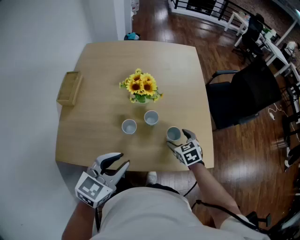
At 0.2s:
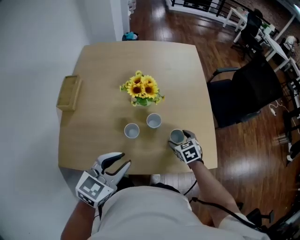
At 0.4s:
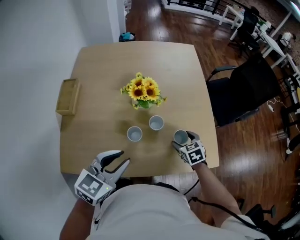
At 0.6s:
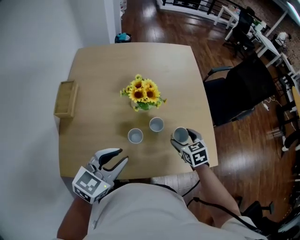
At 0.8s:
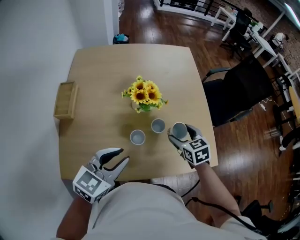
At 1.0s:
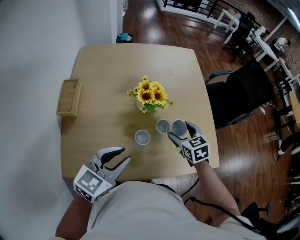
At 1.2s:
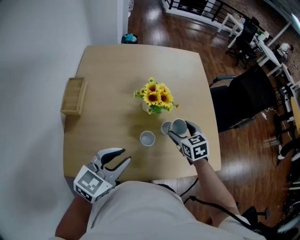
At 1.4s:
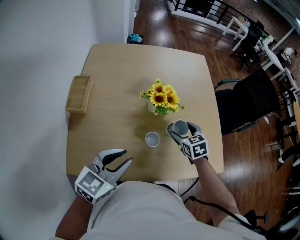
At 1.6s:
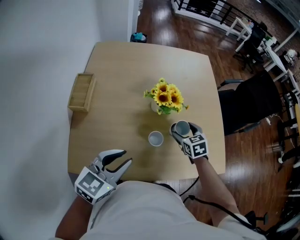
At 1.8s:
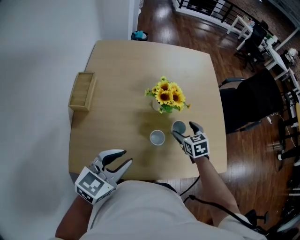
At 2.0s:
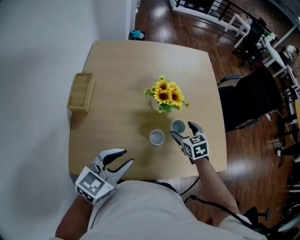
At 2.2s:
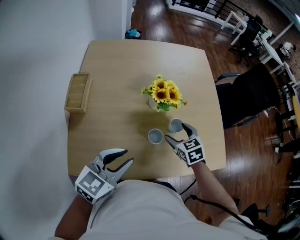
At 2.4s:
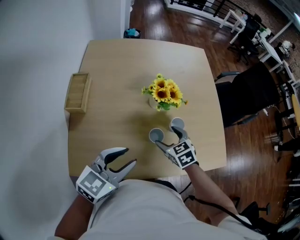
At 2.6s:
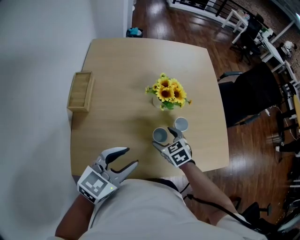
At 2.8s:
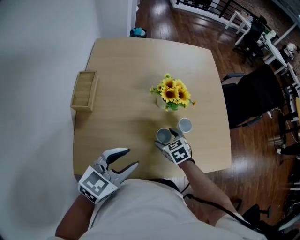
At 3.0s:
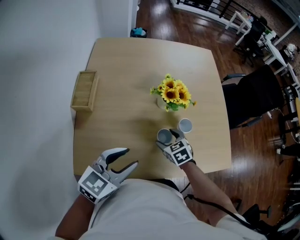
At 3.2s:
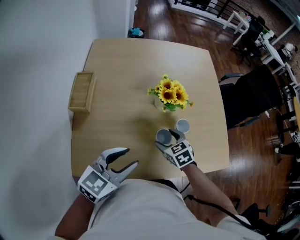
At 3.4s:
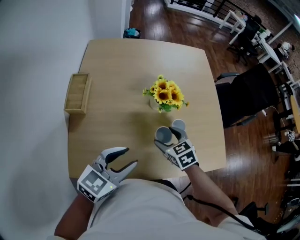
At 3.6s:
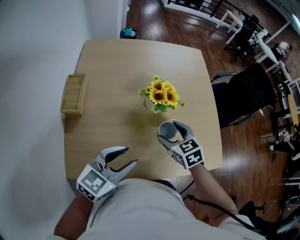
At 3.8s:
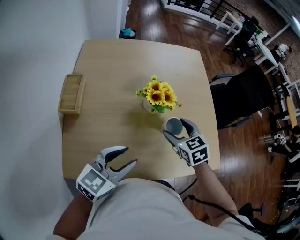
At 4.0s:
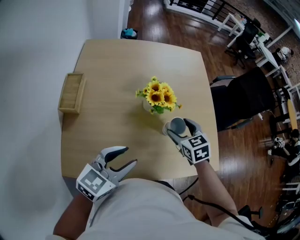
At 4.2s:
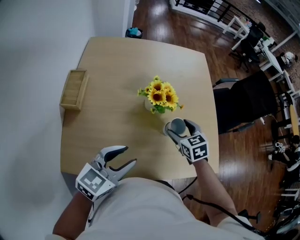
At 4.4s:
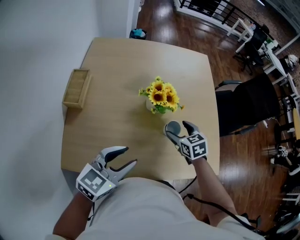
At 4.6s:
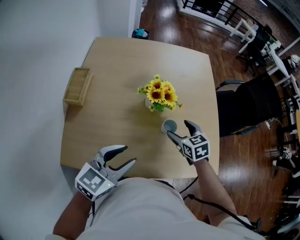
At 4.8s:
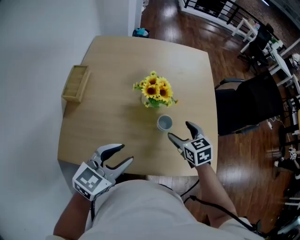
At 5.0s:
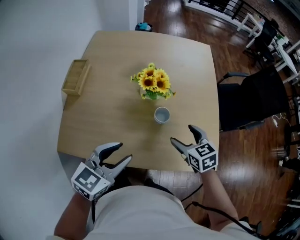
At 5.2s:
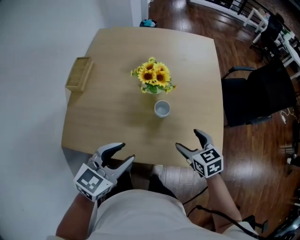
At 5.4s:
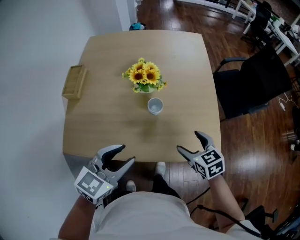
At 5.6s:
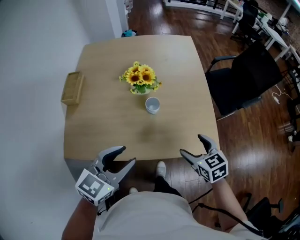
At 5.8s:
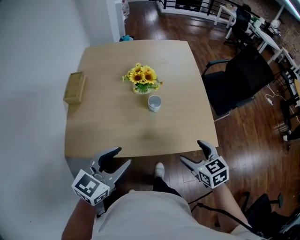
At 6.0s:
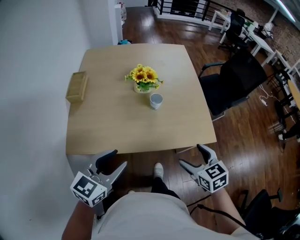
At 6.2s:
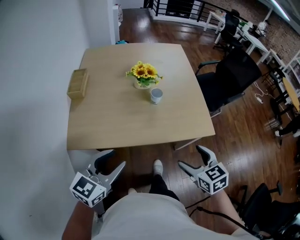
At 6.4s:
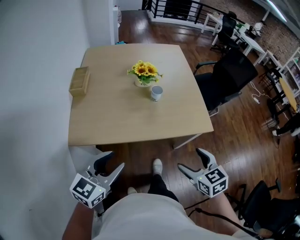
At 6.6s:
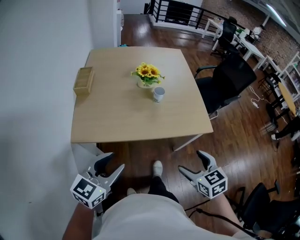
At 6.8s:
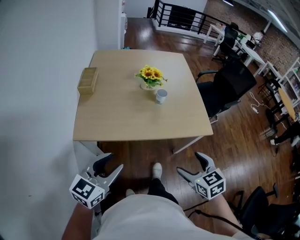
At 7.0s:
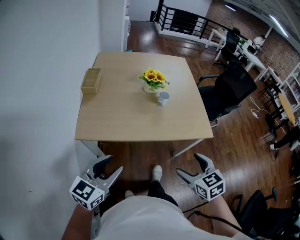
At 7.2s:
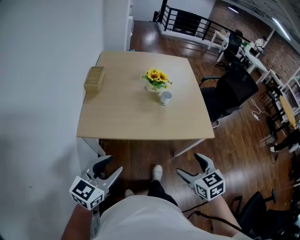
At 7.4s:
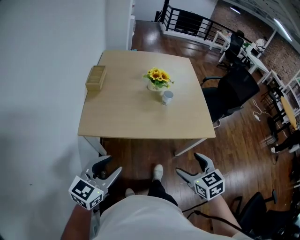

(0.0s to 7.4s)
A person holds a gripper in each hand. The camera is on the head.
0.0s - 1.4s: The left gripper goes approximately 15 cm to the left. The right gripper travels to the left, forward and upward by about 15 cm.
1.4s - 3.0s: The right gripper travels to the left, downward and backward by roughly 15 cm.
3.0s - 4.4s: The right gripper moves to the right, upward and forward, some 15 cm. Meanwhile the left gripper shifts about 5 cm to the right.
4.4s - 6.0s: The right gripper travels backward by about 35 cm, while the left gripper heads backward, covering approximately 20 cm.
6.0s - 7.4s: The two grippers go roughly 20 cm backward and to the left.

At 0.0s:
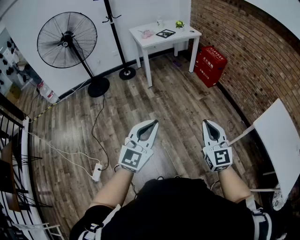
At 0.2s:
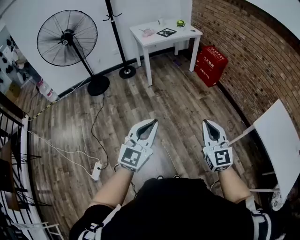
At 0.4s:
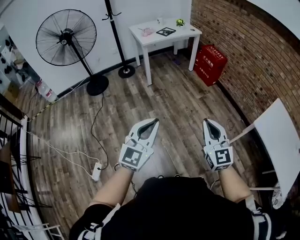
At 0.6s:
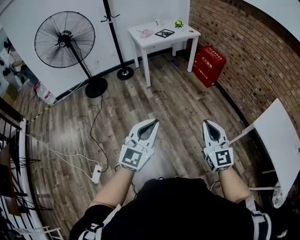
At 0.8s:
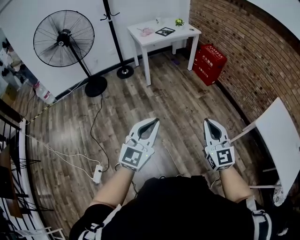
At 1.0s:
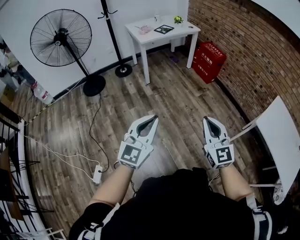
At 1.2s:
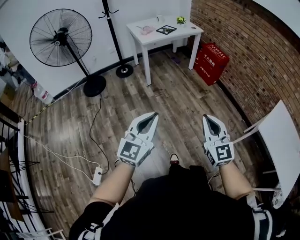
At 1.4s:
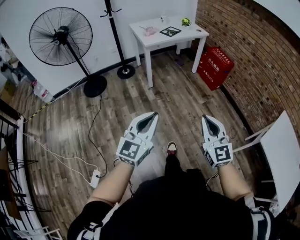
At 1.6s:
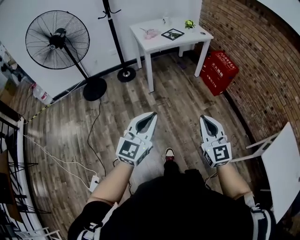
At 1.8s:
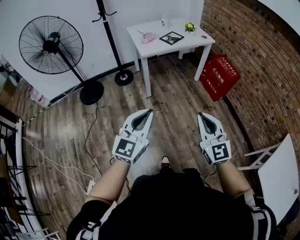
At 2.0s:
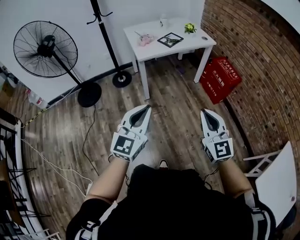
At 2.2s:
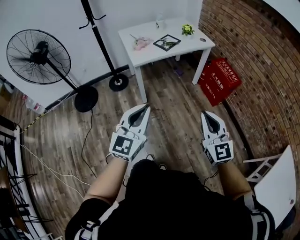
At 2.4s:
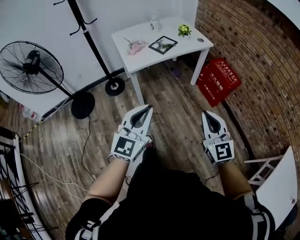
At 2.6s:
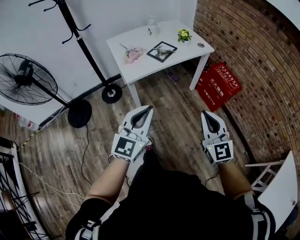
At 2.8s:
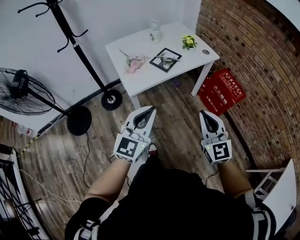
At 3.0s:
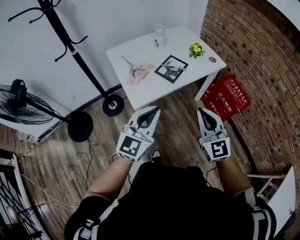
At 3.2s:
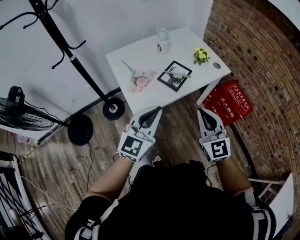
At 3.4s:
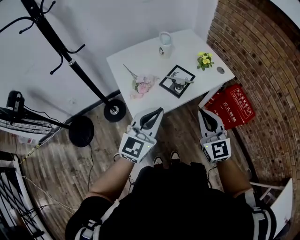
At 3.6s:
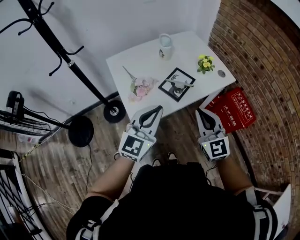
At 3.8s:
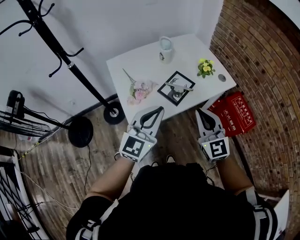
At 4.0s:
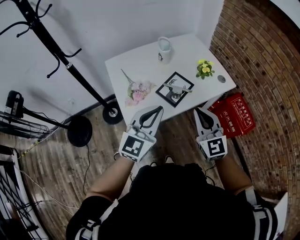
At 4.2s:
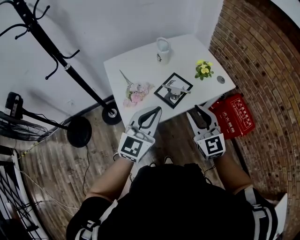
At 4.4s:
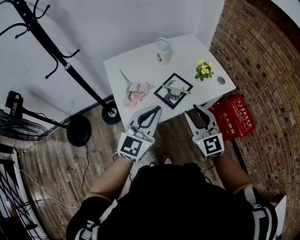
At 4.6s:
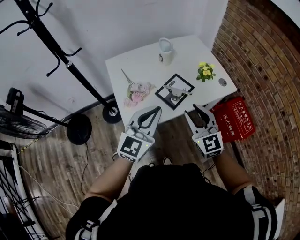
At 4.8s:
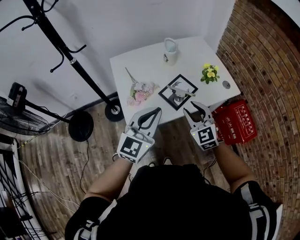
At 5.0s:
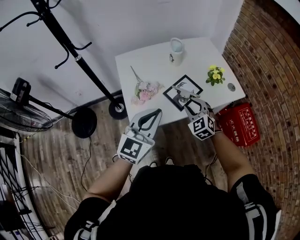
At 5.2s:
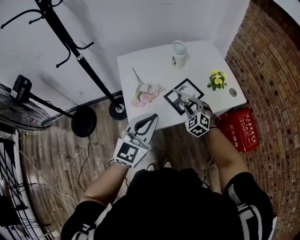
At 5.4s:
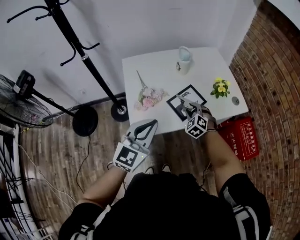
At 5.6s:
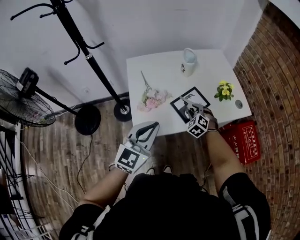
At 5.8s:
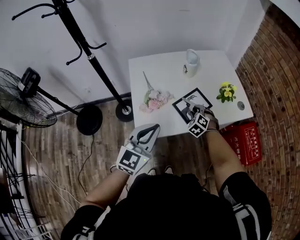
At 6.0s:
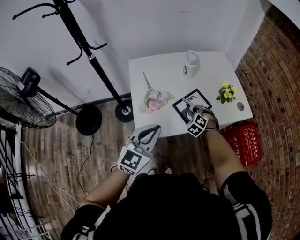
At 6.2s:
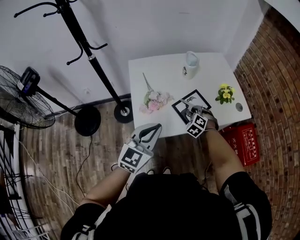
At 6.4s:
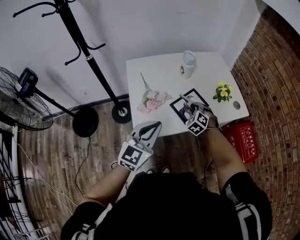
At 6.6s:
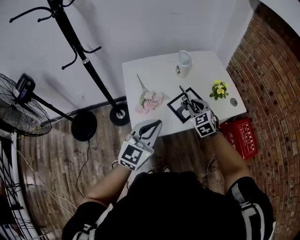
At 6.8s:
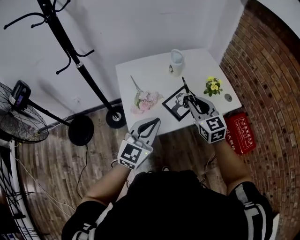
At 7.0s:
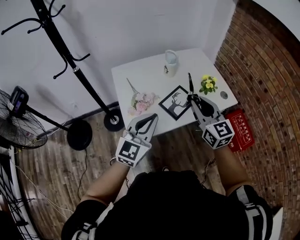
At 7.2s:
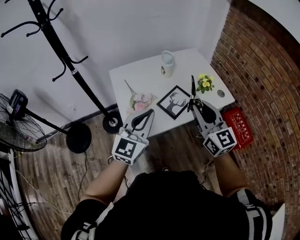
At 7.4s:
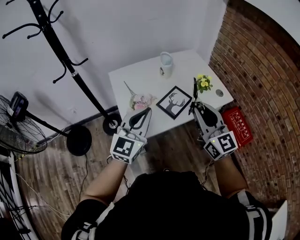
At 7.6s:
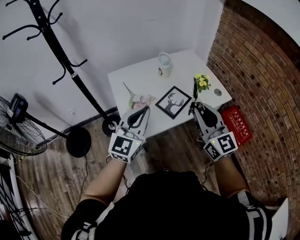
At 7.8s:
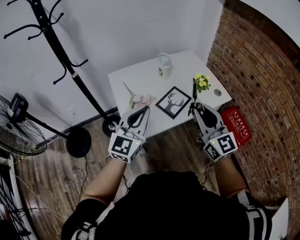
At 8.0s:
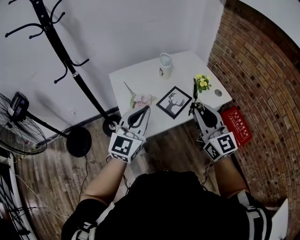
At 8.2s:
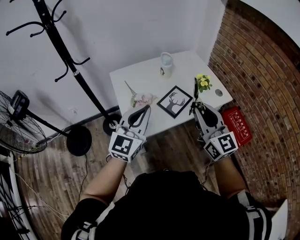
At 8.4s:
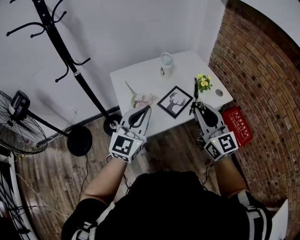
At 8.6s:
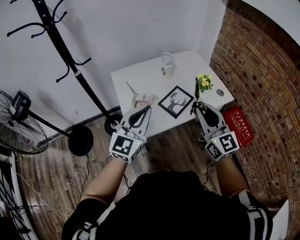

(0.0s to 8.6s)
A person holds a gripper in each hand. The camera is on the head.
0.0s - 1.4s: The two grippers go about 20 cm forward and to the left.
1.4s - 2.8s: The pair of grippers is taken forward, roughly 60 cm.
2.8s - 4.4s: Both grippers travel together forward, some 30 cm. The right gripper opens up.
4.4s - 5.8s: The right gripper heads downward and forward, covering roughly 30 cm, and angles its fingers downward, by about 40 degrees; the left gripper travels to the left by some 5 cm.
5.8s - 7.2s: The left gripper moves upward, approximately 5 cm. Meanwhile the right gripper travels upward and backward by roughly 35 cm, and points its fingers about 50 degrees further upward.
7.2s - 8.6s: There are only small adjustments of the grippers.

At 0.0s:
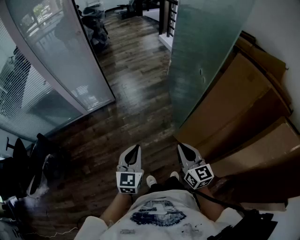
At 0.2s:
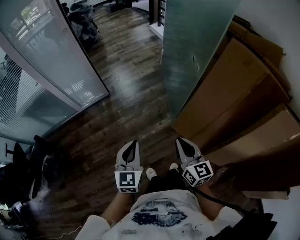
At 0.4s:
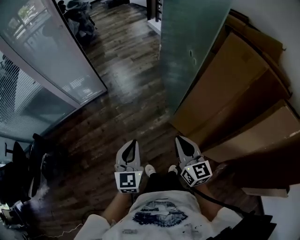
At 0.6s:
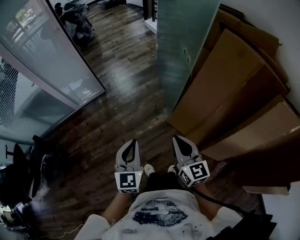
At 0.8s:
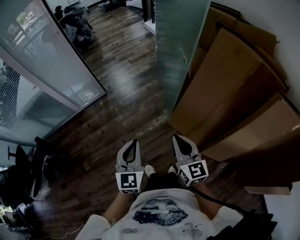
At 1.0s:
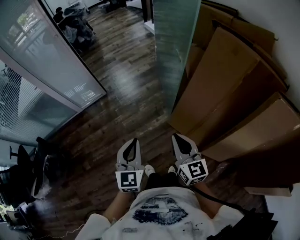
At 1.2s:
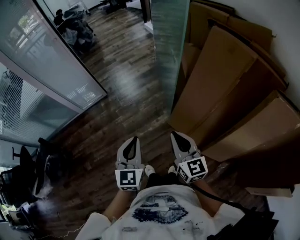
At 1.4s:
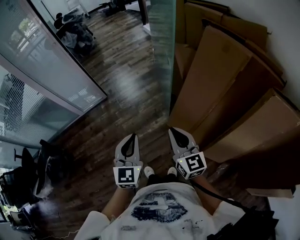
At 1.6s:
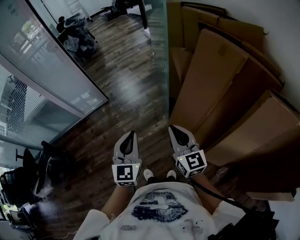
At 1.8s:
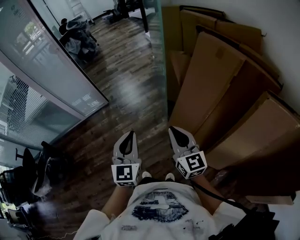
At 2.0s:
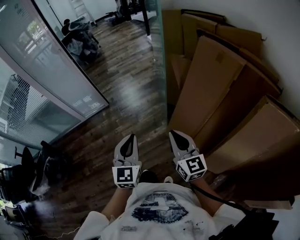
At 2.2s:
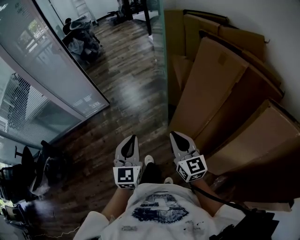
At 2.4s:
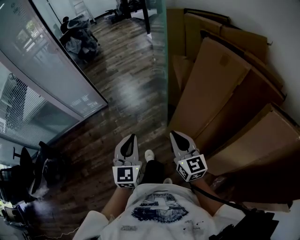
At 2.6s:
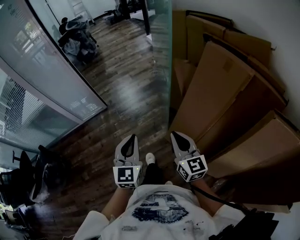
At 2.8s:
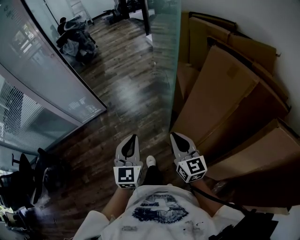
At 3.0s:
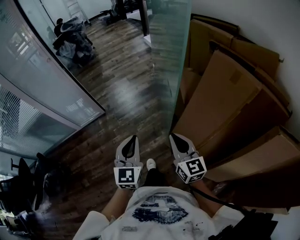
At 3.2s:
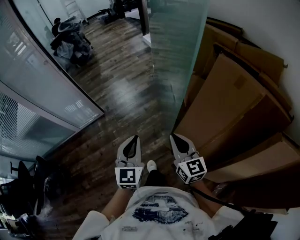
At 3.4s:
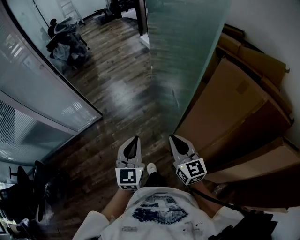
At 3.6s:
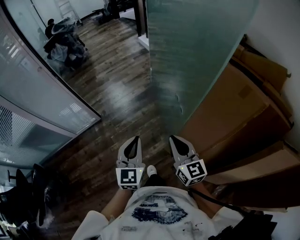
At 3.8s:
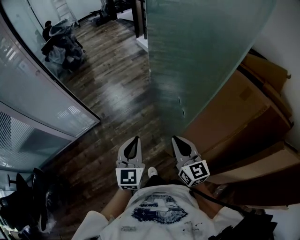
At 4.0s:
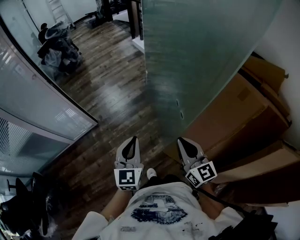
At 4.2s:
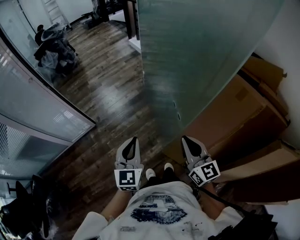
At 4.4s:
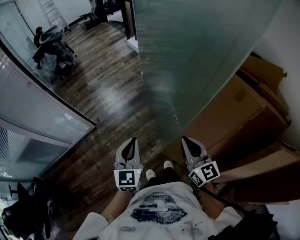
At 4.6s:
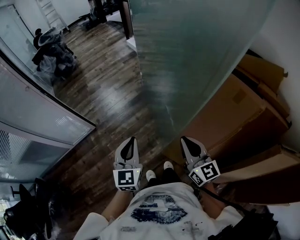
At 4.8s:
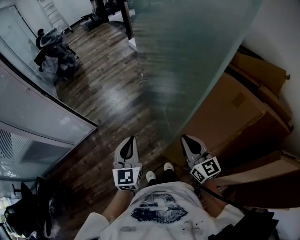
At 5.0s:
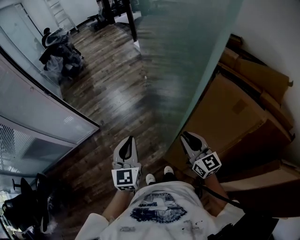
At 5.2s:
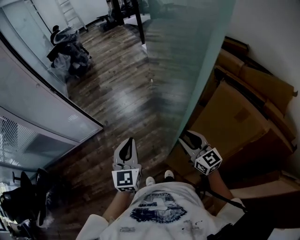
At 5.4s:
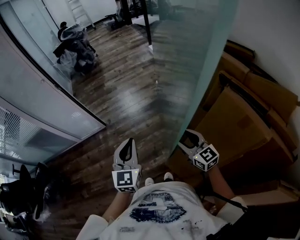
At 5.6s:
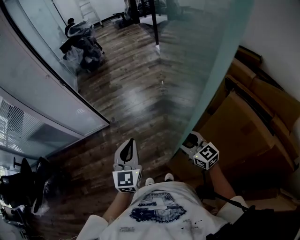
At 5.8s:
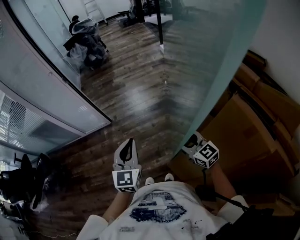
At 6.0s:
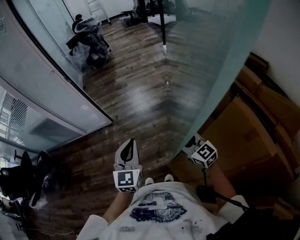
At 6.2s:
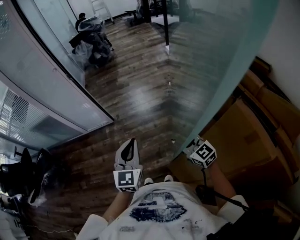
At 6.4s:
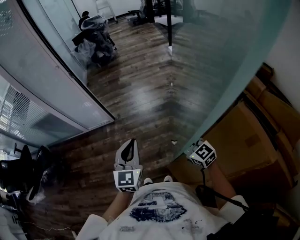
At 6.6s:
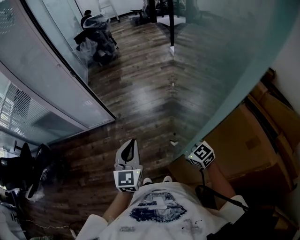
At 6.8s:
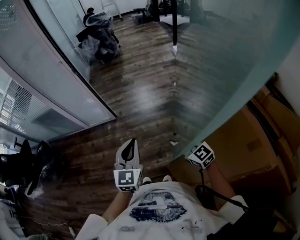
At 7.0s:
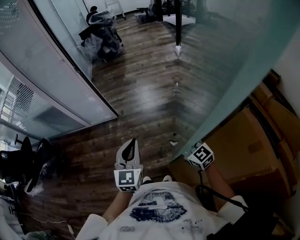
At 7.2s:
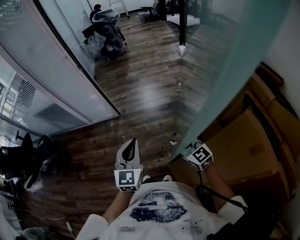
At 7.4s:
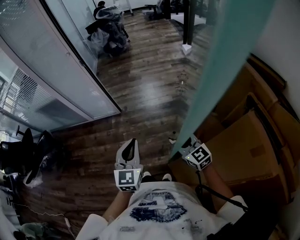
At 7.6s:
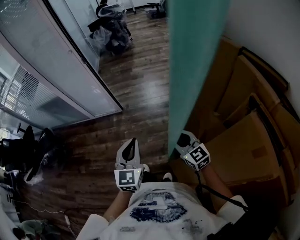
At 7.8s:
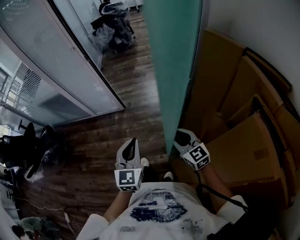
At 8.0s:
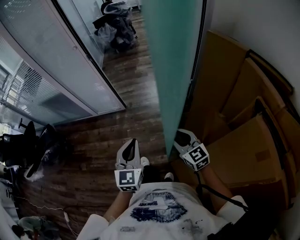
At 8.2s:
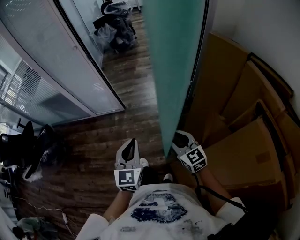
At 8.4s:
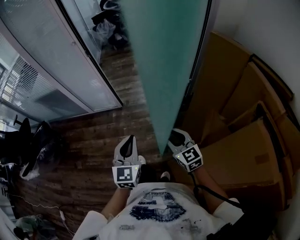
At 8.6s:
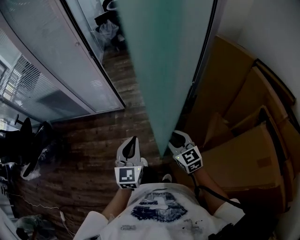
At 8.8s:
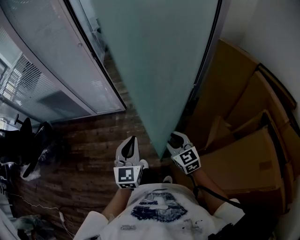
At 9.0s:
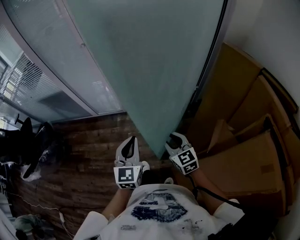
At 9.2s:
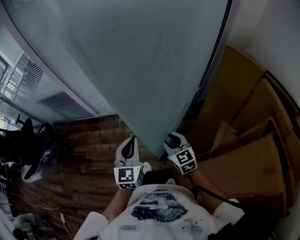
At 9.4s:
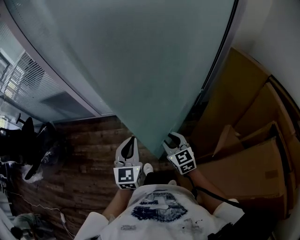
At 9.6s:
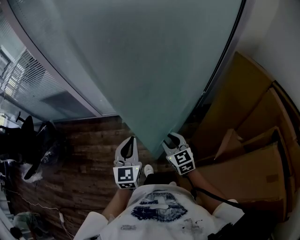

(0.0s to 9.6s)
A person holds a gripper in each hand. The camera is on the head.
0.0s - 1.6s: The left gripper travels to the right and upward by roughly 20 cm. Meanwhile the right gripper heads to the right, covering about 15 cm.
1.6s - 3.2s: The grippers both shift forward by approximately 15 cm.
3.2s - 4.8s: The left gripper heads forward, covering roughly 15 cm. The right gripper is displaced forward and to the right by about 15 cm.
4.8s - 6.4s: The right gripper shifts by roughly 15 cm, rotates some 50 degrees, and opens its fingers.
6.4s - 8.0s: The two grippers go roughly 5 cm to the left.
8.0s - 9.6s: The left gripper shifts about 15 cm forward and to the left. Meanwhile the right gripper goes some 20 cm to the left and forward.
